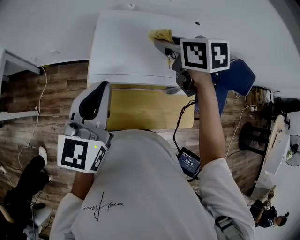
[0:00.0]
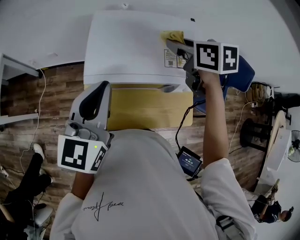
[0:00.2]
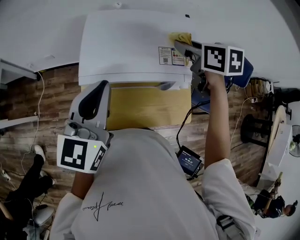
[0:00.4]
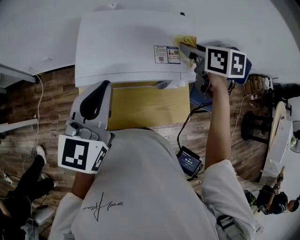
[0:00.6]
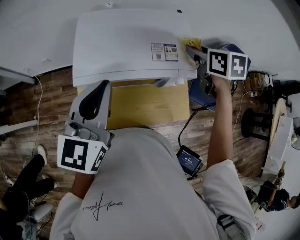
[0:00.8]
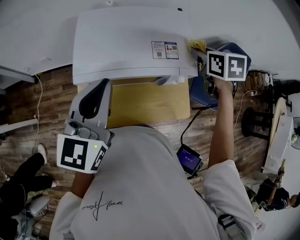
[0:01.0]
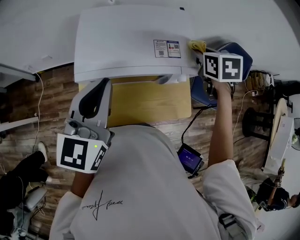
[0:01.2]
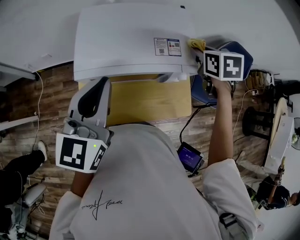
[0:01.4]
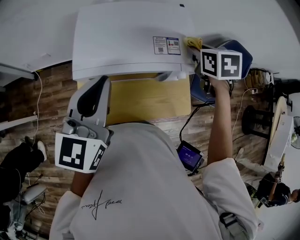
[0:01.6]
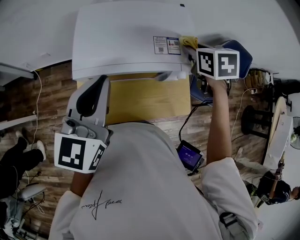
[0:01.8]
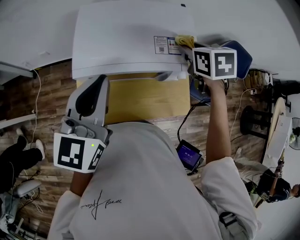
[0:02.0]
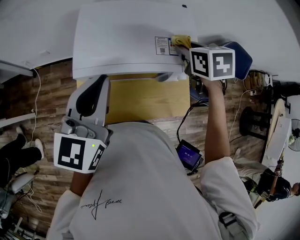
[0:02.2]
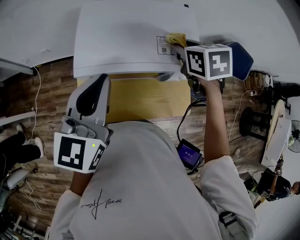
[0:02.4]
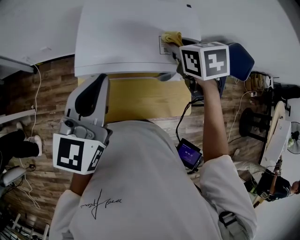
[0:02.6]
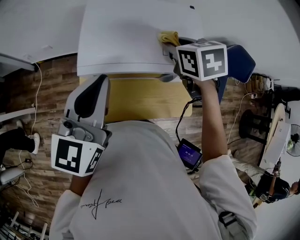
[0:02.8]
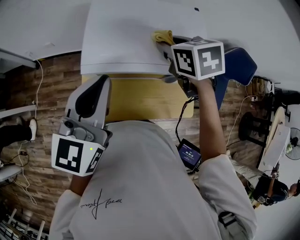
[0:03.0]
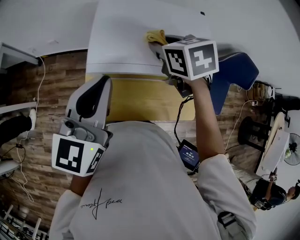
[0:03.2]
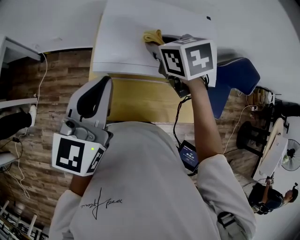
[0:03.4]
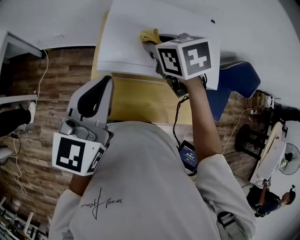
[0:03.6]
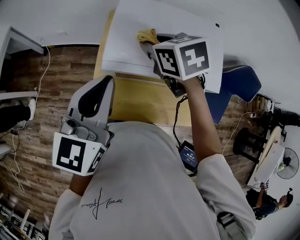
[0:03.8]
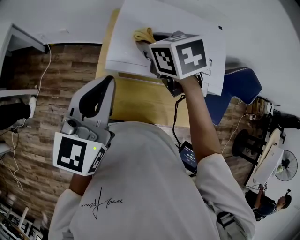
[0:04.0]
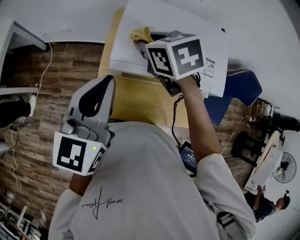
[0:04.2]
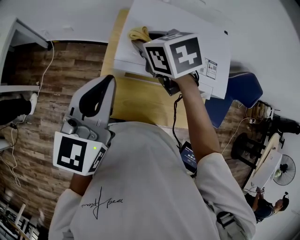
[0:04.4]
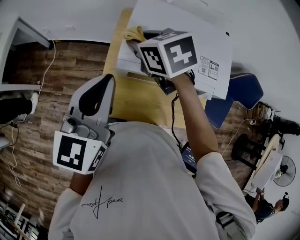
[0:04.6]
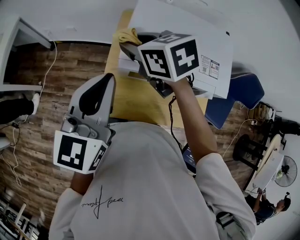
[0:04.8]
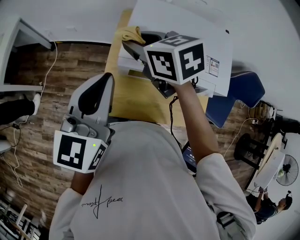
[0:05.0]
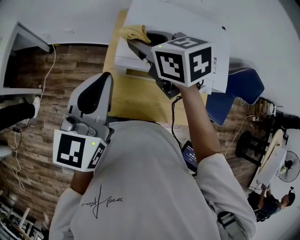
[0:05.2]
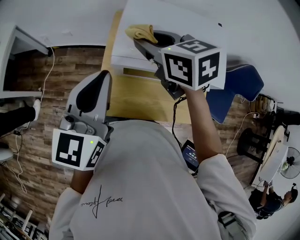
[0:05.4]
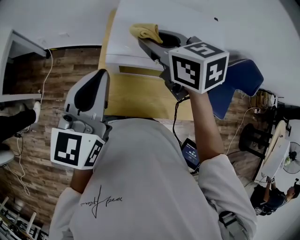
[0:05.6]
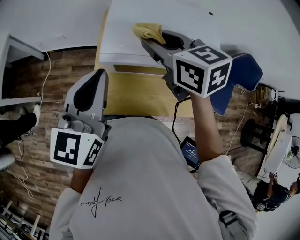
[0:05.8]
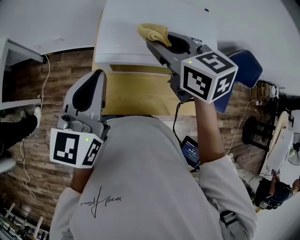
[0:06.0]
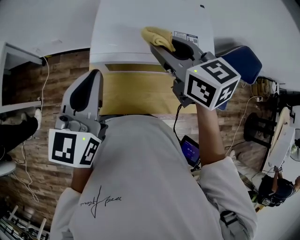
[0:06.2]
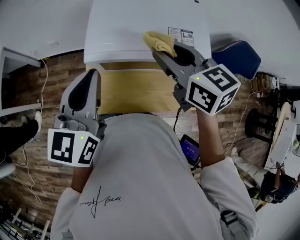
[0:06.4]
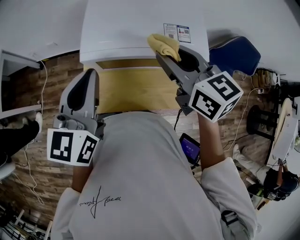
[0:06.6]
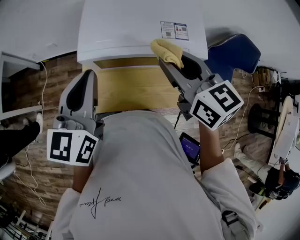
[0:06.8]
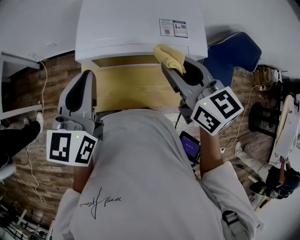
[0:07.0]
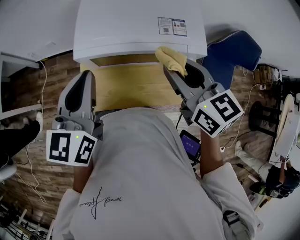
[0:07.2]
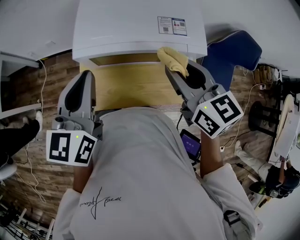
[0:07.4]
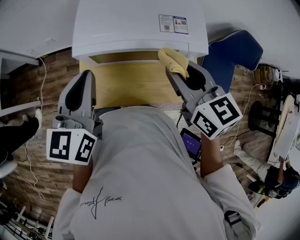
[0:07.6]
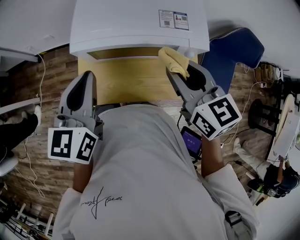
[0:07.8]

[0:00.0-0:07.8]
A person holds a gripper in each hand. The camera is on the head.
0:00.0 to 0:01.6: The right gripper shifts about 20 cm to the right, and turns by about 30 degrees.
0:01.6 to 0:03.2: The right gripper goes about 20 cm to the left, and turns by some 20 degrees.
0:03.2 to 0:04.6: The right gripper is displaced to the left by about 15 cm. Meanwhile the left gripper goes approximately 10 cm to the left.
0:04.6 to 0:06.2: The right gripper travels to the right, backward and upward by approximately 20 cm, and turns by approximately 30 degrees. The left gripper shifts by roughly 5 cm.
0:06.2 to 0:07.8: The right gripper is displaced backward and to the right by about 15 cm. Meanwhile the left gripper travels downward by some 5 cm.

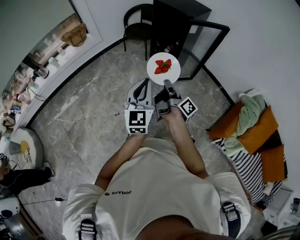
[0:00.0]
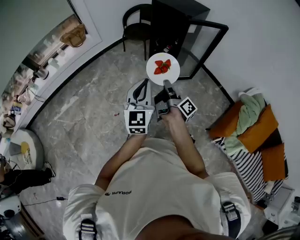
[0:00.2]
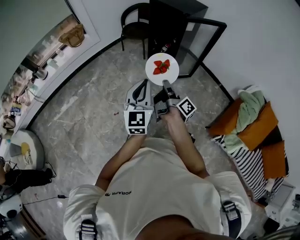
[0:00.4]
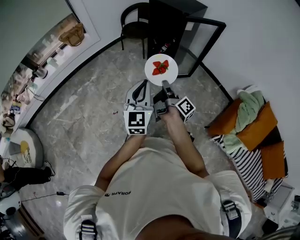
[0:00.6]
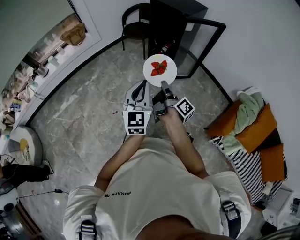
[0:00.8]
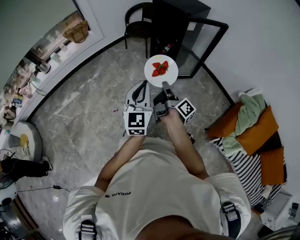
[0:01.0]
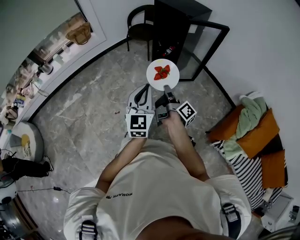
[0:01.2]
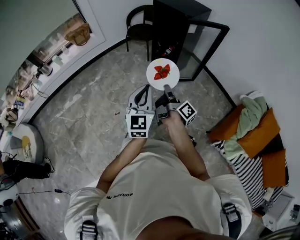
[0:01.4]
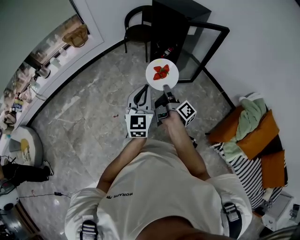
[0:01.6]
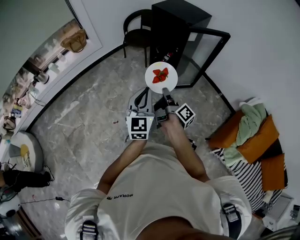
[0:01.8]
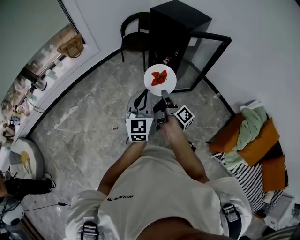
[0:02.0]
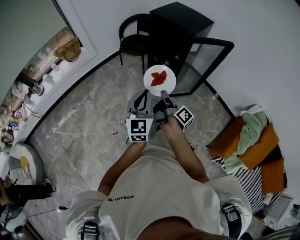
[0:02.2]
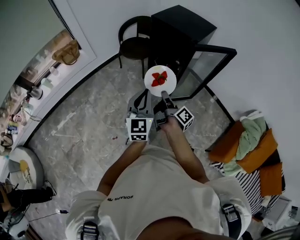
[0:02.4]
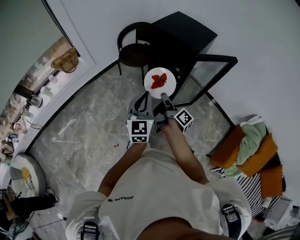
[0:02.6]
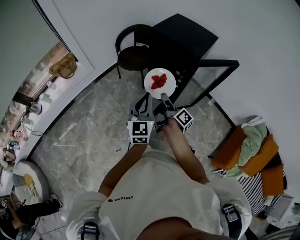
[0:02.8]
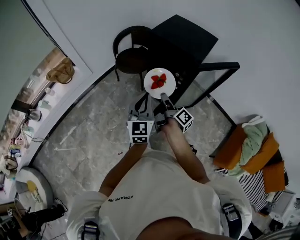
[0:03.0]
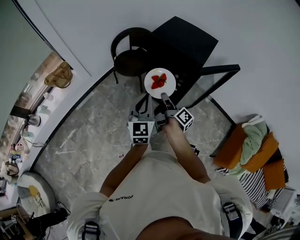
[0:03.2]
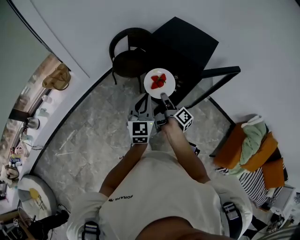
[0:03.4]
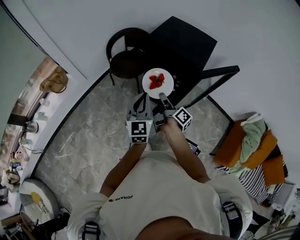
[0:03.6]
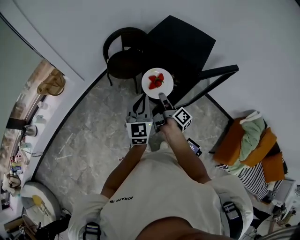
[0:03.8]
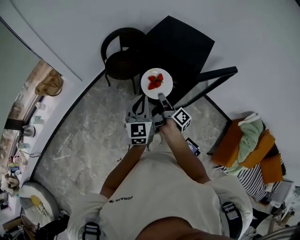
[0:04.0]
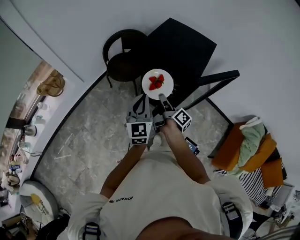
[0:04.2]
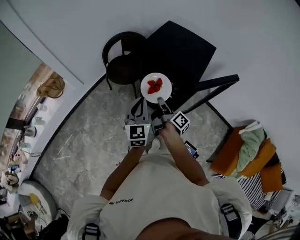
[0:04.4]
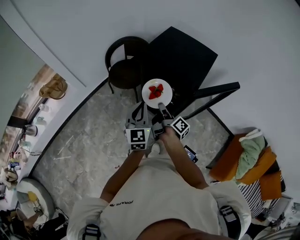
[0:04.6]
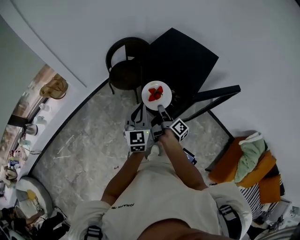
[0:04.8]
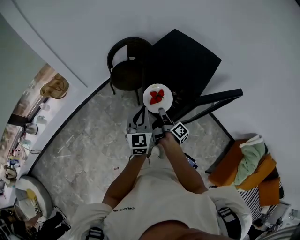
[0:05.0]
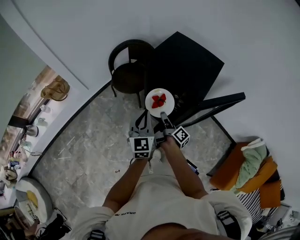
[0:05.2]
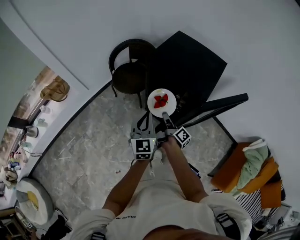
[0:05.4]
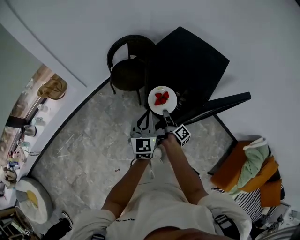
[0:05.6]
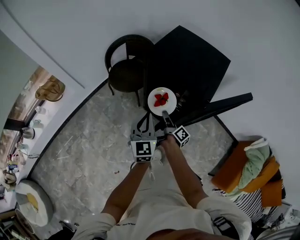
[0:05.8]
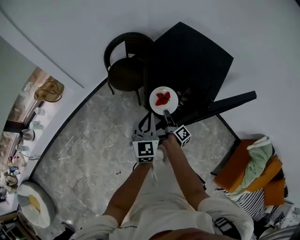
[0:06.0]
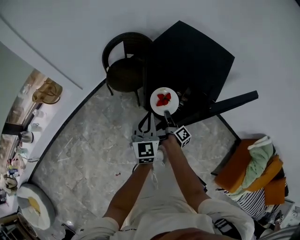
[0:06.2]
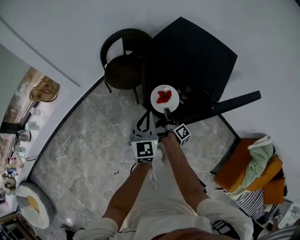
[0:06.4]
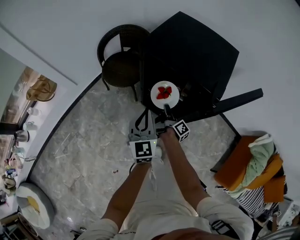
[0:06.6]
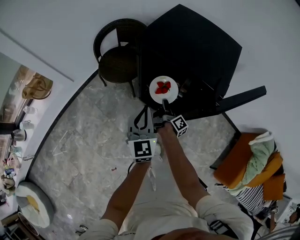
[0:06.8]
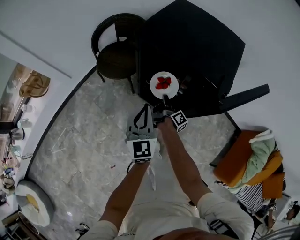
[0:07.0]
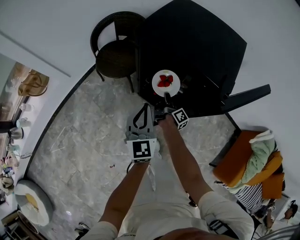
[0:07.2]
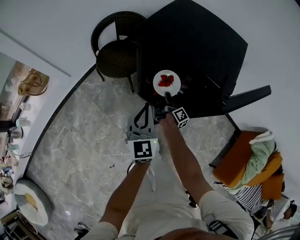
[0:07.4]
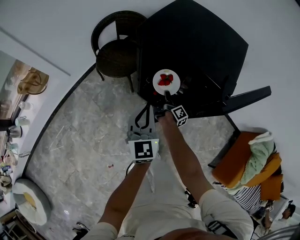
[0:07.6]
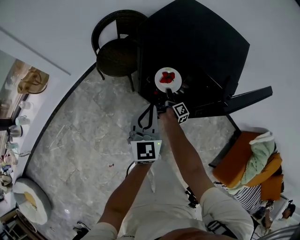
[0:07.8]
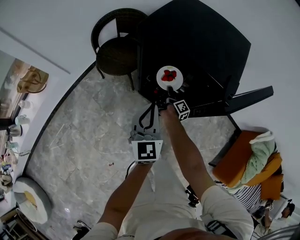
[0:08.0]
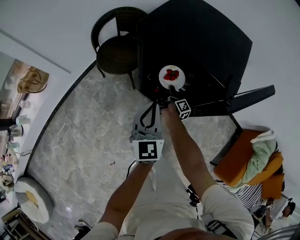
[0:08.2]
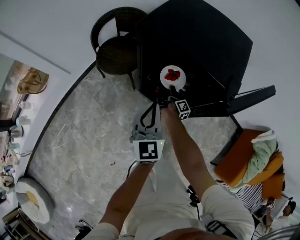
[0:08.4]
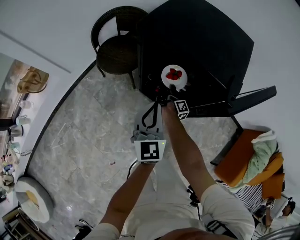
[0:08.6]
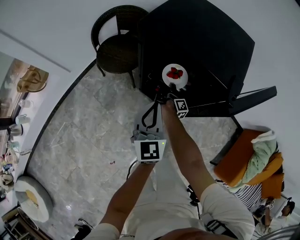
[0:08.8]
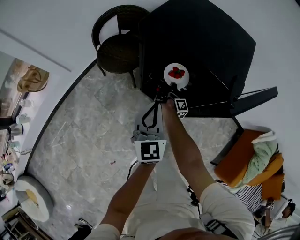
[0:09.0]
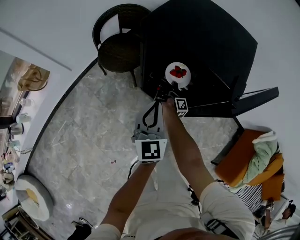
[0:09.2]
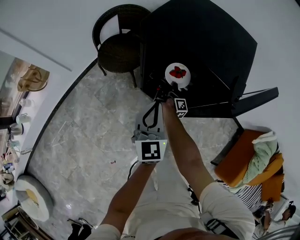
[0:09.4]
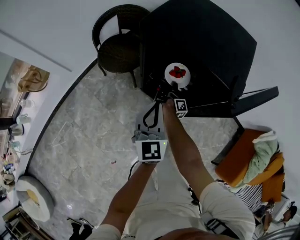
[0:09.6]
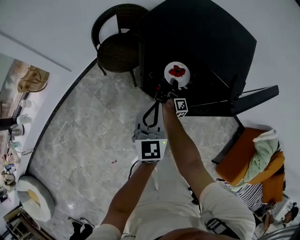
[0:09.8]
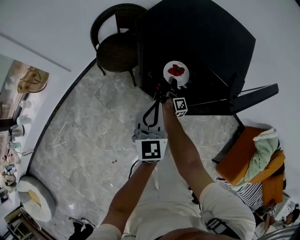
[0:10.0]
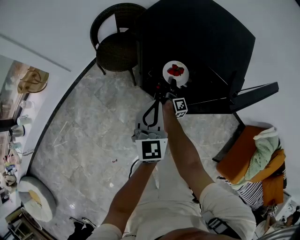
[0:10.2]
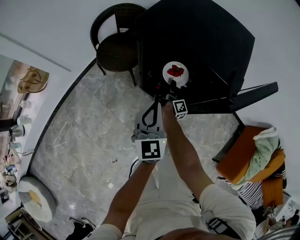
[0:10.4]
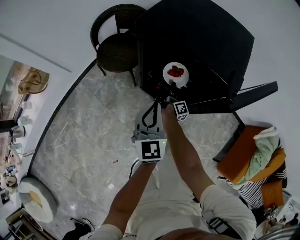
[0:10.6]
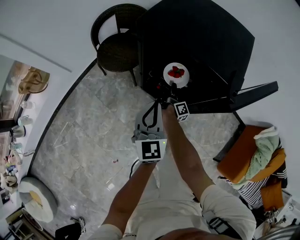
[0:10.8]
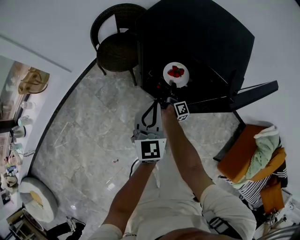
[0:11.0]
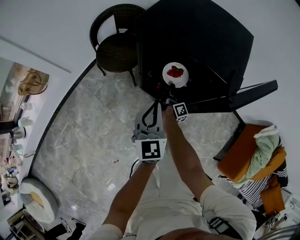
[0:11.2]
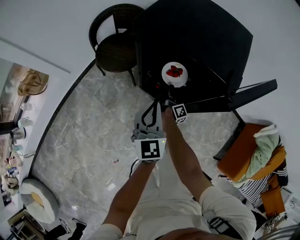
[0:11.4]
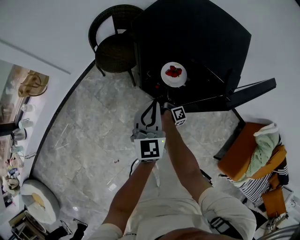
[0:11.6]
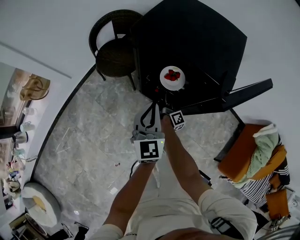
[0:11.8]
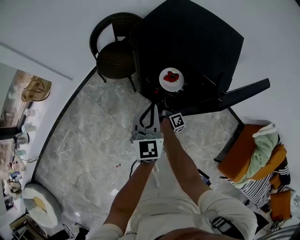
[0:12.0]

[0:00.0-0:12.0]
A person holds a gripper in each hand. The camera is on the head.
0:01.6 to 0:03.0: The left gripper moves roughly 40 cm.
0:03.0 to 0:04.4: The left gripper ends up roughly 15 cm from where it was.
0:04.4 to 0:06.0: The left gripper goes some 10 cm downward.
0:06.0 to 0:07.6: The left gripper travels downward by about 5 cm.

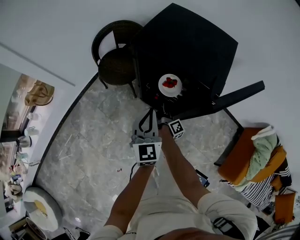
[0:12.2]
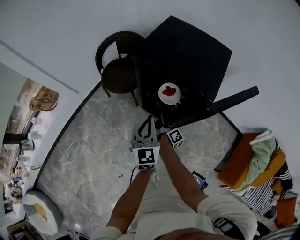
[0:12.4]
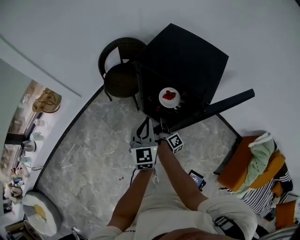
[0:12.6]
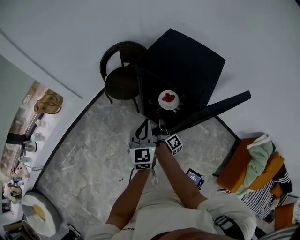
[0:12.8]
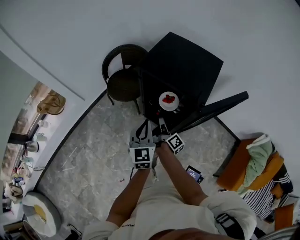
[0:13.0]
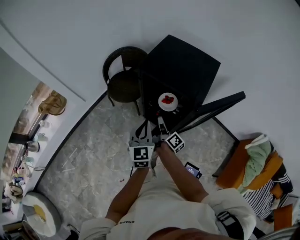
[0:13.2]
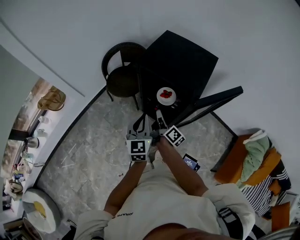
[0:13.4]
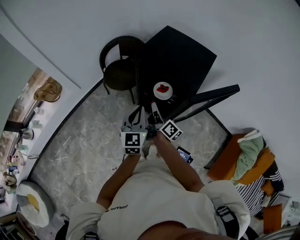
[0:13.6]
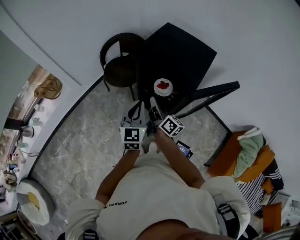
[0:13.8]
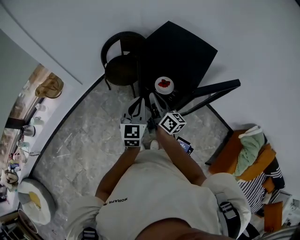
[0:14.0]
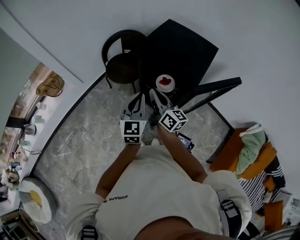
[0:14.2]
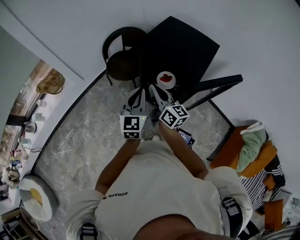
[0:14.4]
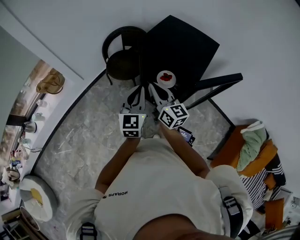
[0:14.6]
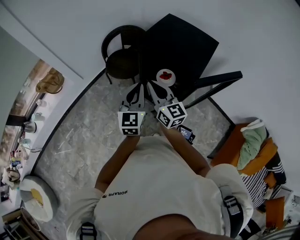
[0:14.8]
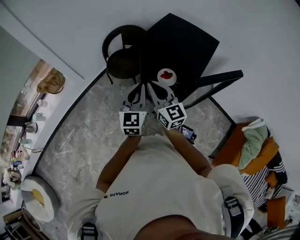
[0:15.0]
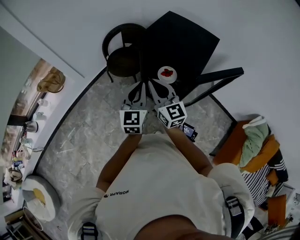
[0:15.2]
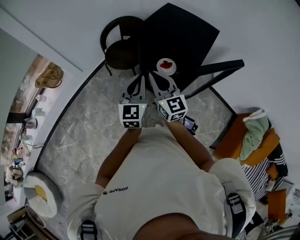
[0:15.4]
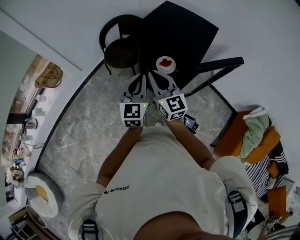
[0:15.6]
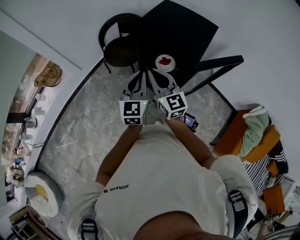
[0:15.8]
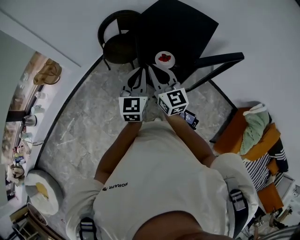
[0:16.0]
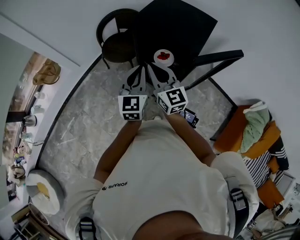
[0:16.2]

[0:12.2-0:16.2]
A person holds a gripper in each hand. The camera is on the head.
0:12.2 to 0:13.6: The left gripper goes roughly 10 cm upward.
